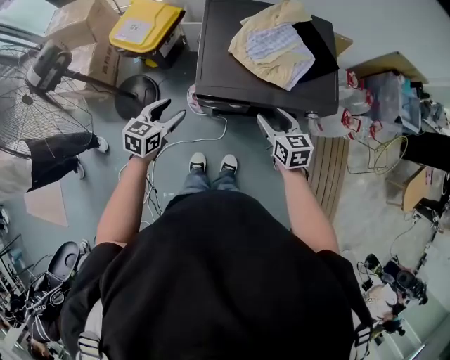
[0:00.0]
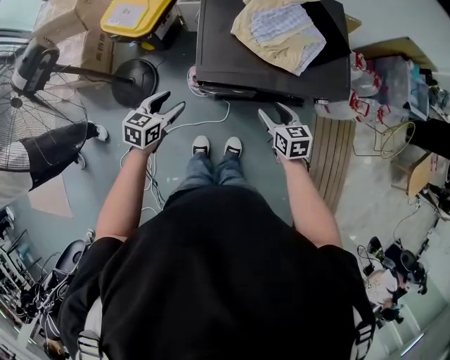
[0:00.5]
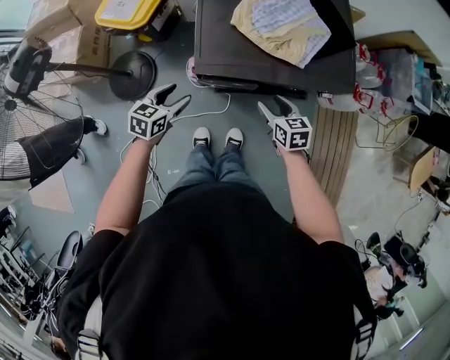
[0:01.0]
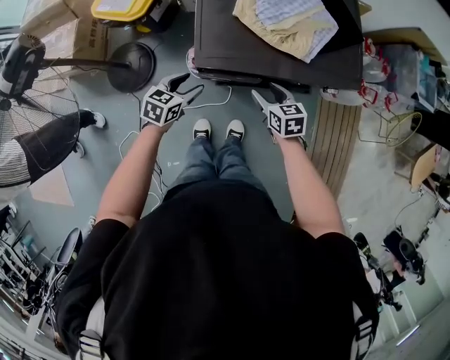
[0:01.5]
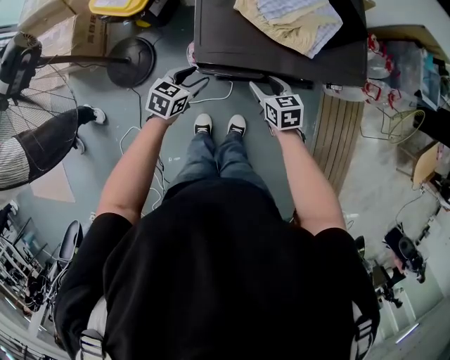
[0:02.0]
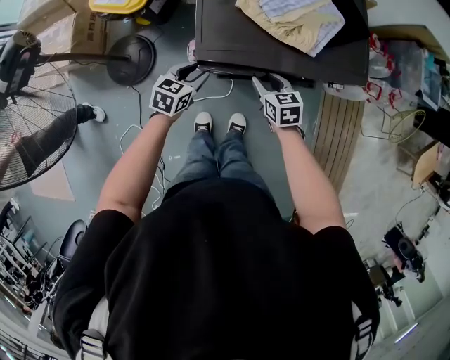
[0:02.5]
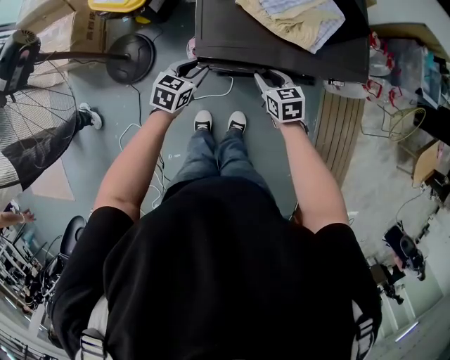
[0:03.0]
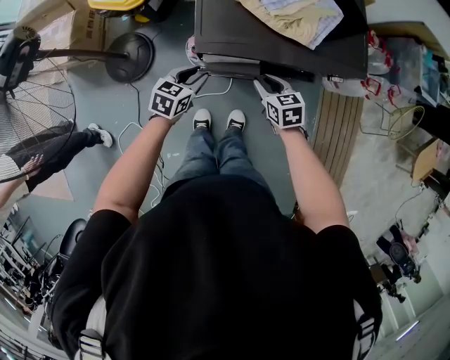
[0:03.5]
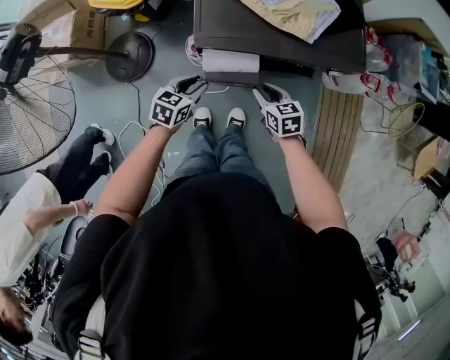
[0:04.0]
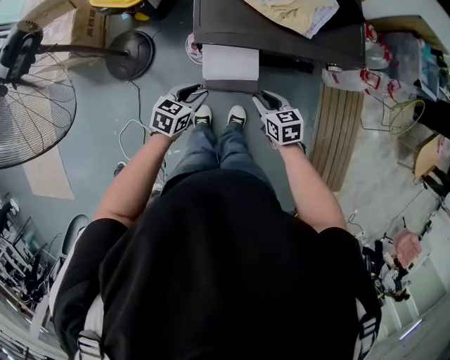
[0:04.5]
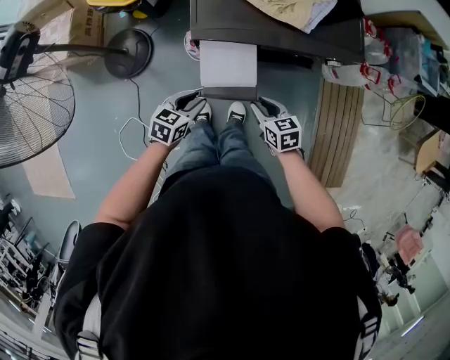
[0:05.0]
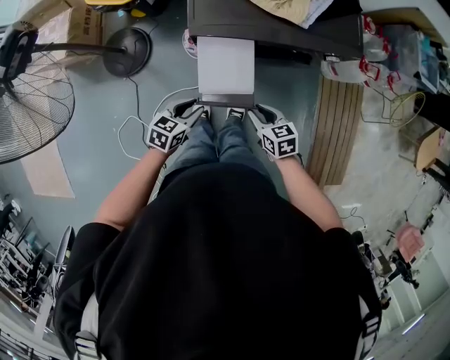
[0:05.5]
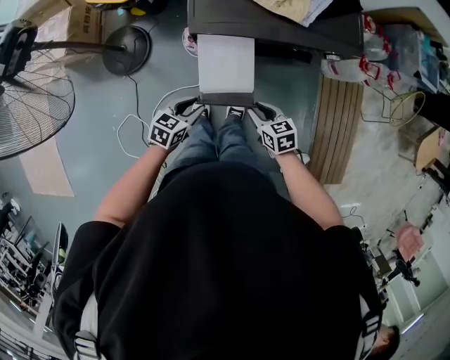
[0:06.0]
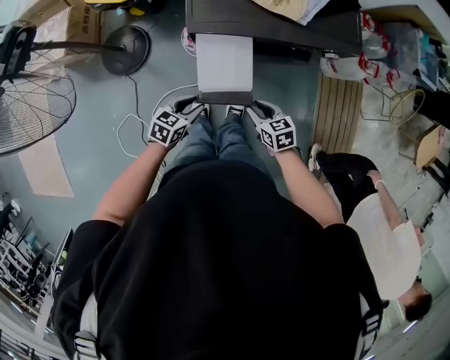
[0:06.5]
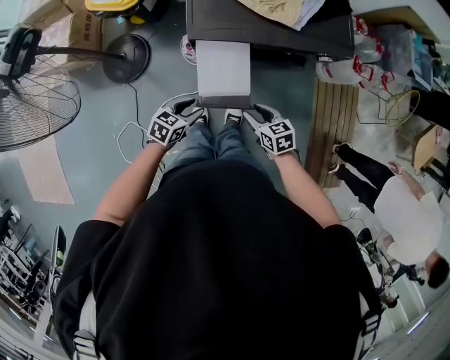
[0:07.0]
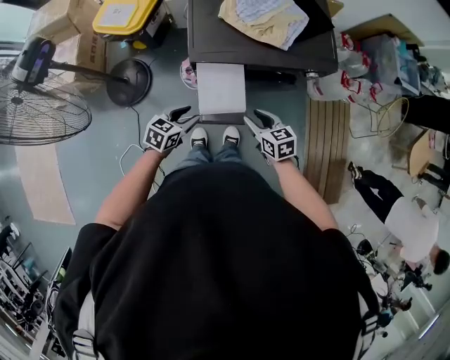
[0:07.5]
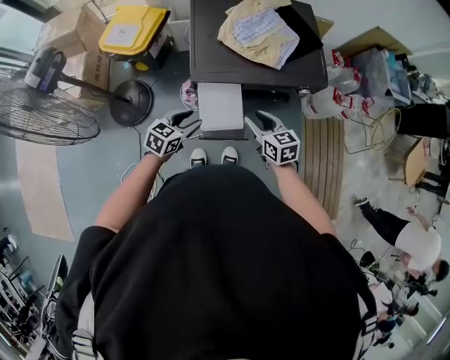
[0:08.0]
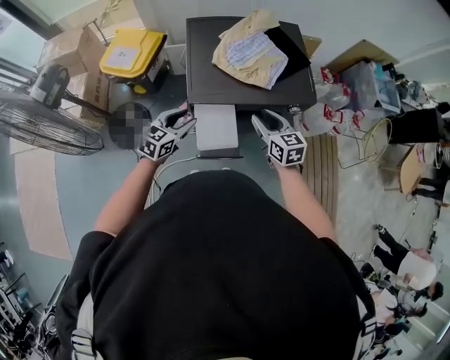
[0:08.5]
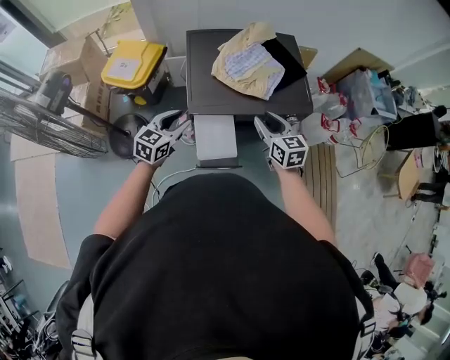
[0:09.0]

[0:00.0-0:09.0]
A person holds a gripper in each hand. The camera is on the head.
0:00.0 to 0:02.0: The right gripper travels downward by some 15 cm. Meanwhile the left gripper heads downward and to the right, covering about 15 cm.
0:02.0 to 0:04.5: Both grippers move backward, some 10 cm. The left gripper closes up. Meanwhile the right gripper closes up.
0:04.5 to 0:07.0: The grippers both shift backward by about 10 cm.
0:07.0 to 0:09.0: The grippers both shift upward and forward by some 30 cm. The left gripper turns by approximately 30 degrees; the right gripper changes its angle by about 30 degrees.

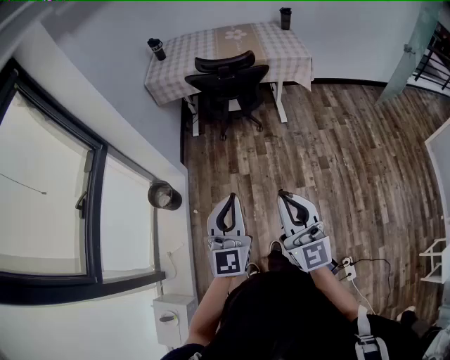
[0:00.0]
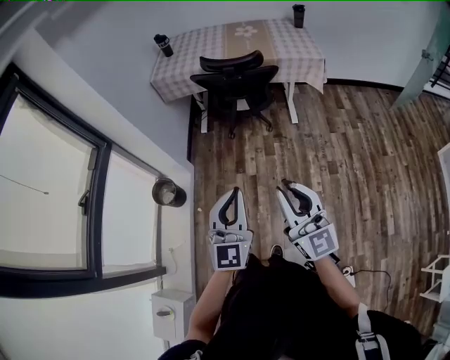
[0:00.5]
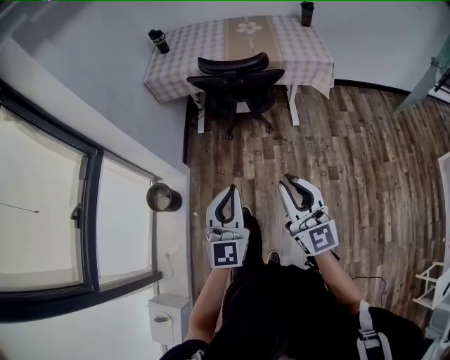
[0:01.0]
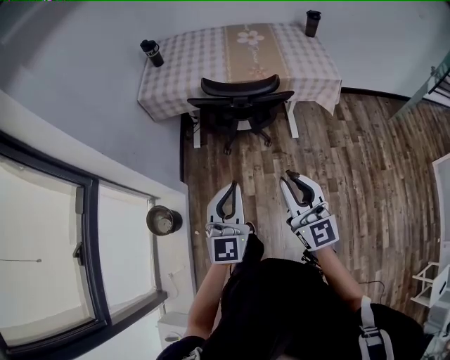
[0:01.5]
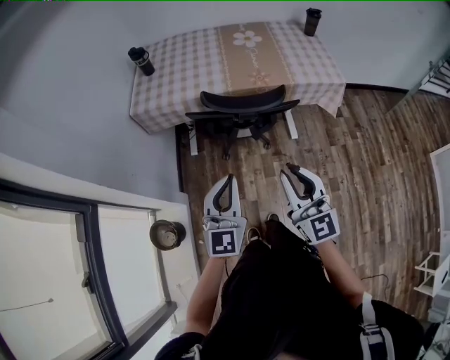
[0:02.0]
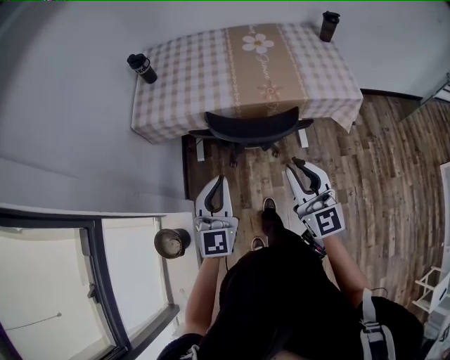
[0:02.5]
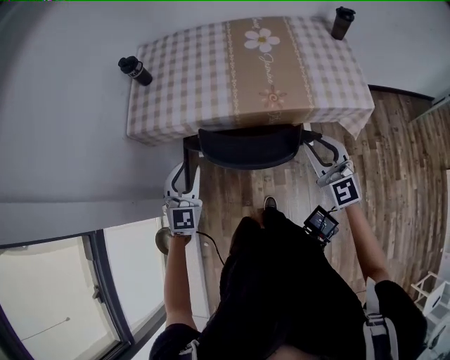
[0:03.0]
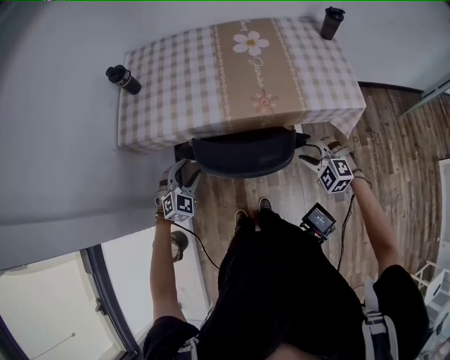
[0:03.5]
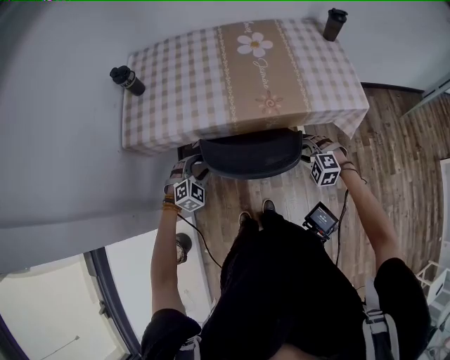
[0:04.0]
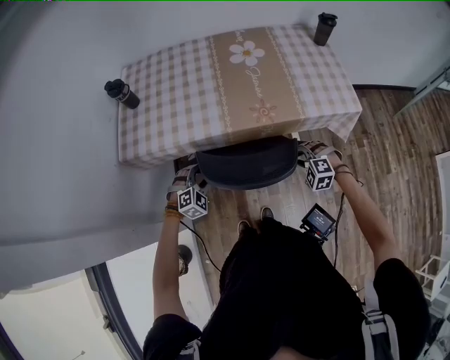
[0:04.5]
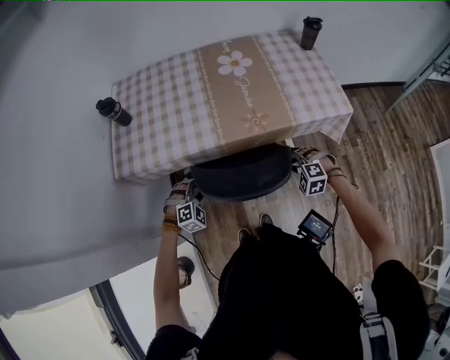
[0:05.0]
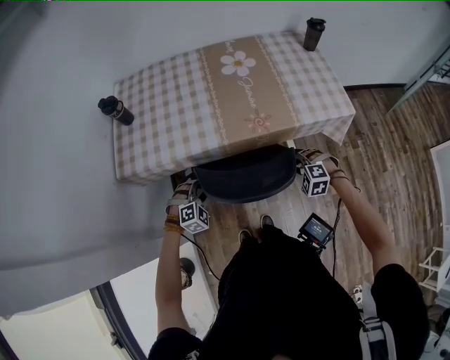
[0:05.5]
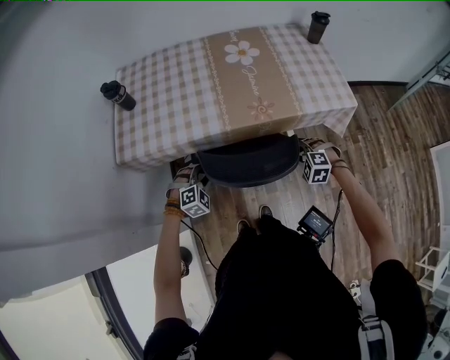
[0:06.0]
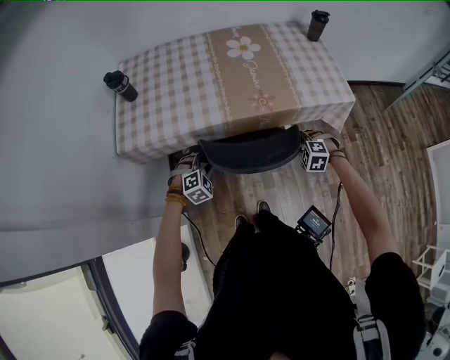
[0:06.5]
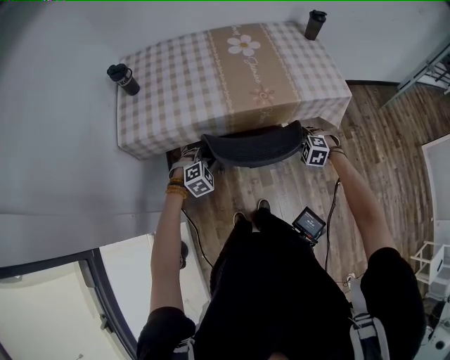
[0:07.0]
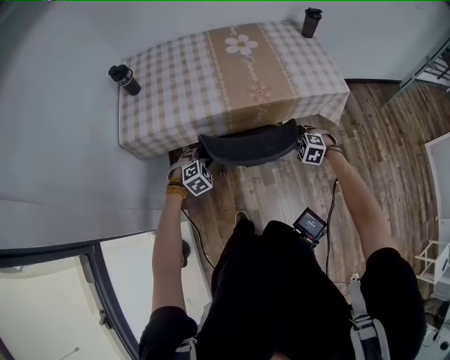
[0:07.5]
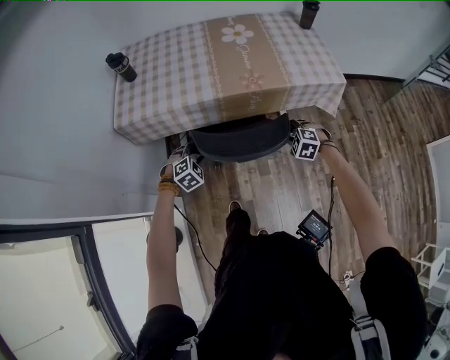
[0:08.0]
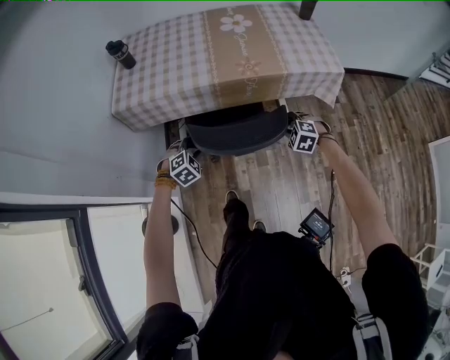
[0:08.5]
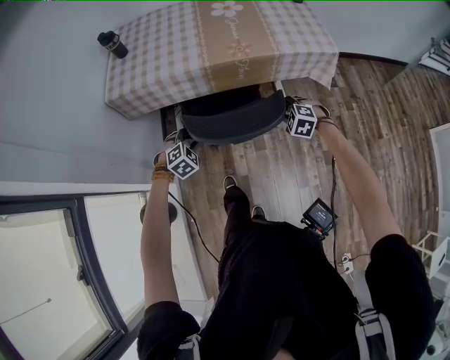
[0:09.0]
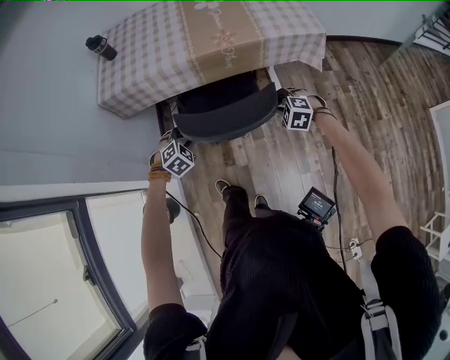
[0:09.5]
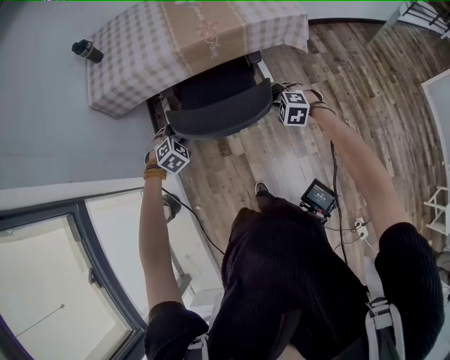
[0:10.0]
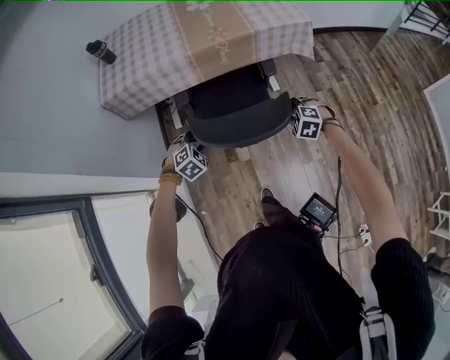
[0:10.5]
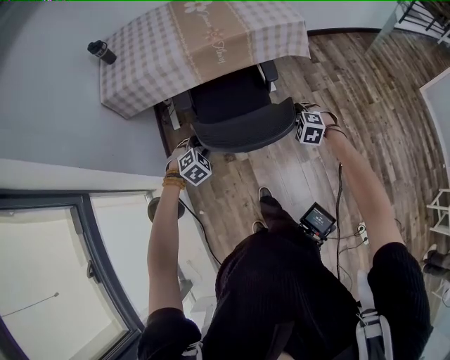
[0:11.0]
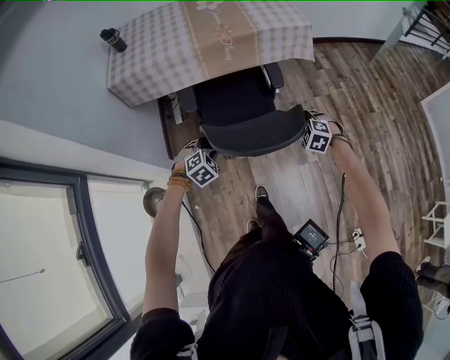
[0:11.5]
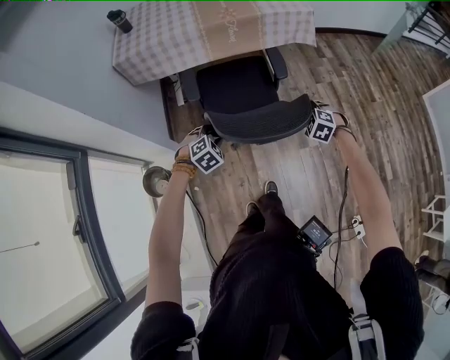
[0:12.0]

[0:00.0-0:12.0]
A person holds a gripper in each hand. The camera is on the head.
0:00.0 to 0:02.0: Both grippers are carried forward, about 50 cm.
0:02.0 to 0:04.0: The right gripper shifts roughly 40 cm forward, downward and to the right, points its fingers some 60 degrees further downward, and opens its fingers. Meanwhile the left gripper goes approximately 40 cm forward and downward, angles its fingers downward, by roughly 50 degrees, and opens up.
0:04.0 to 0:06.0: The grippers stay close to where they were, moving slightly.
0:06.0 to 0:08.0: Both grippers travel together backward, some 10 cm.
0:08.0 to 0:10.0: The grippers both shift backward by some 15 cm.
0:10.0 to 0:12.0: Both grippers move backward, some 25 cm.

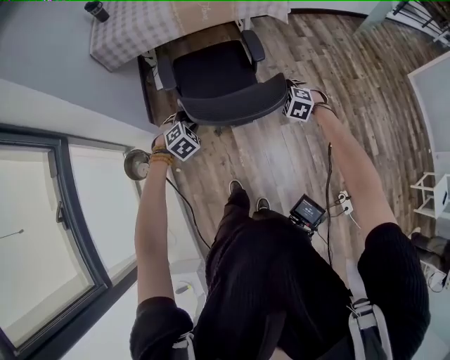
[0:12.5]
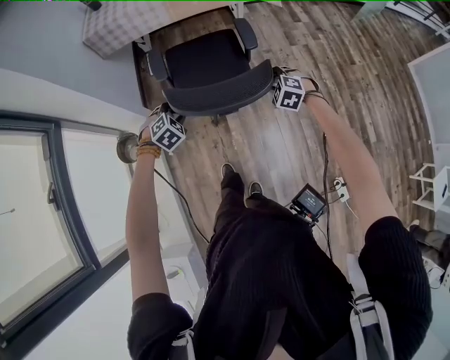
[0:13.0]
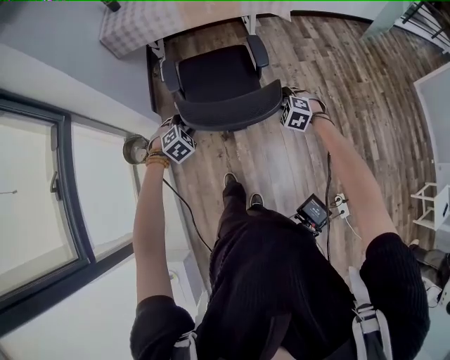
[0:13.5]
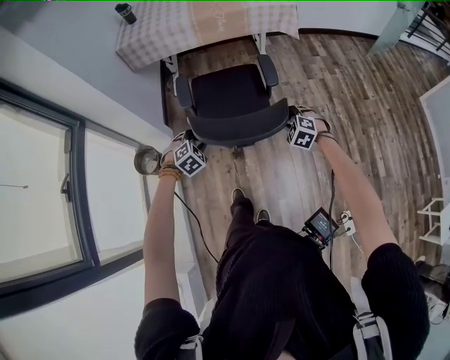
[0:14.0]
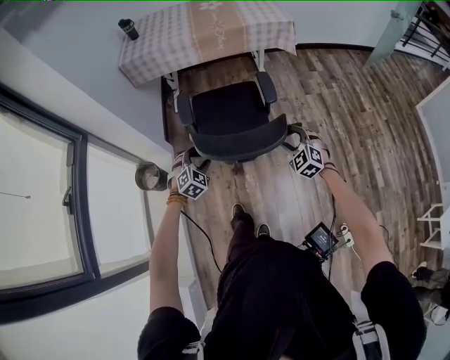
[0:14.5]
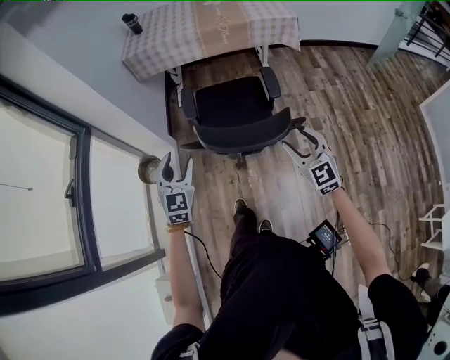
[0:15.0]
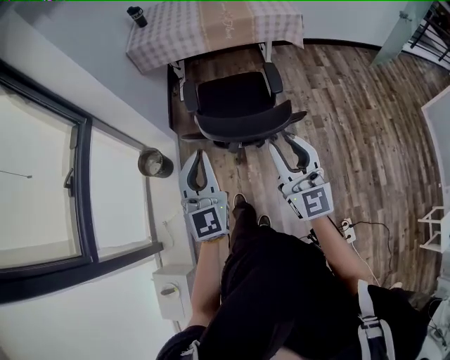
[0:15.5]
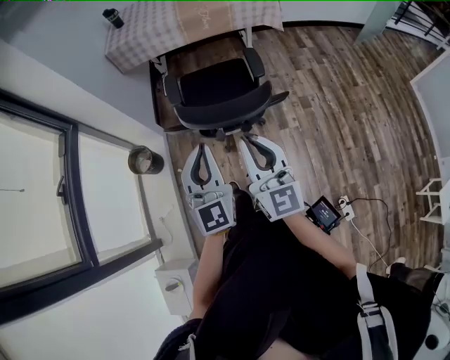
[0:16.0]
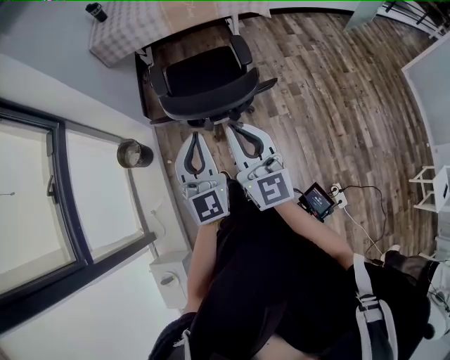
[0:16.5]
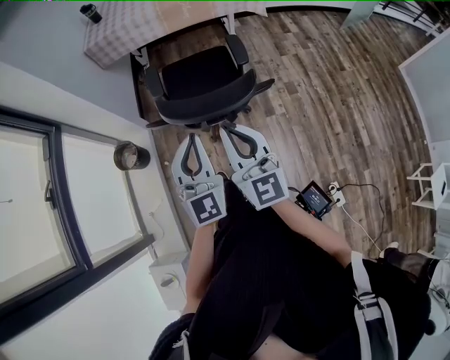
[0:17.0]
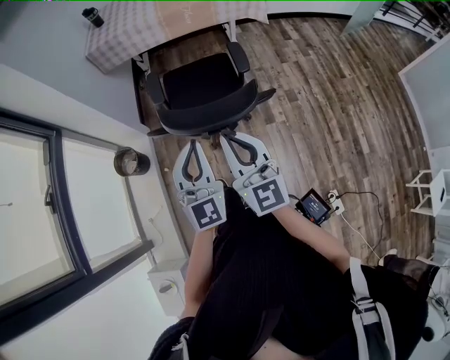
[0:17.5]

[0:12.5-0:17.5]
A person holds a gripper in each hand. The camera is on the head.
0:12.5 to 0:15.0: Both grippers travel together backward and upward, some 25 cm. The left gripper angles its fingers upward, by roughly 40 degrees, and opens up. Meanwhile the right gripper points its fingers about 50 degrees further upward.
0:15.0 to 0:17.5: The right gripper shifts approximately 15 cm to the left, upward and backward, turns by some 30 degrees, and closes up. Meanwhile the left gripper is displaced to the right, backward and upward by roughly 20 cm, changes its angle by roughly 20 degrees, and closes up.
